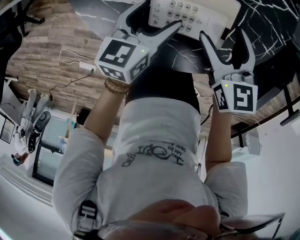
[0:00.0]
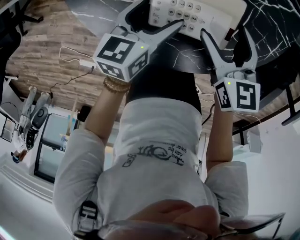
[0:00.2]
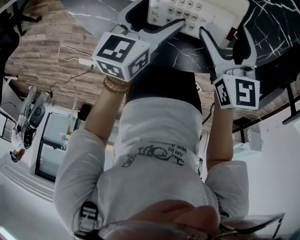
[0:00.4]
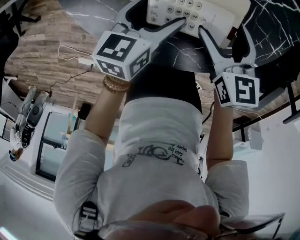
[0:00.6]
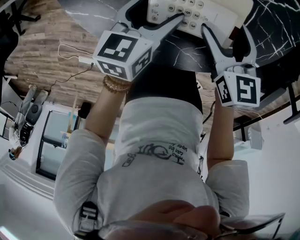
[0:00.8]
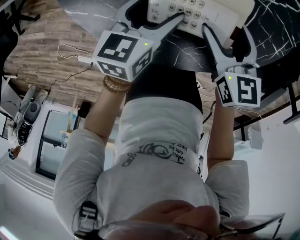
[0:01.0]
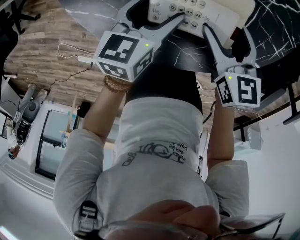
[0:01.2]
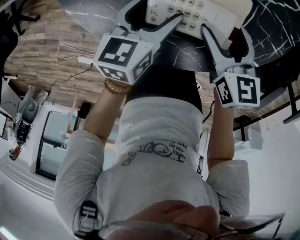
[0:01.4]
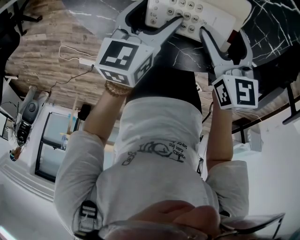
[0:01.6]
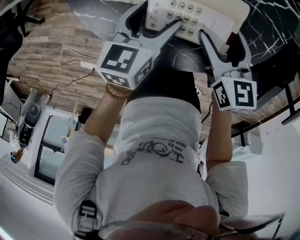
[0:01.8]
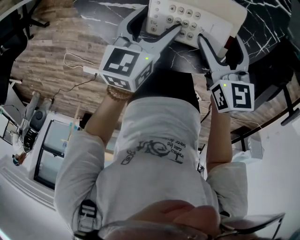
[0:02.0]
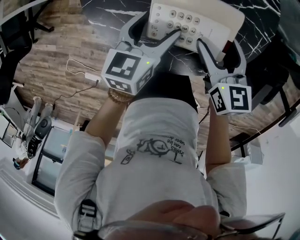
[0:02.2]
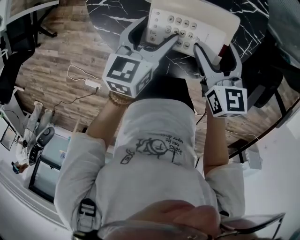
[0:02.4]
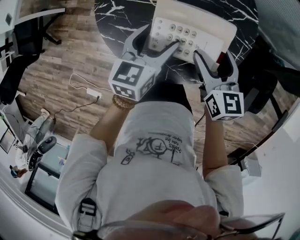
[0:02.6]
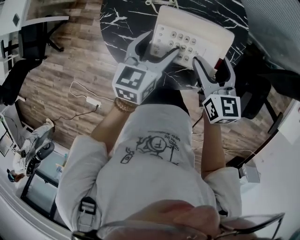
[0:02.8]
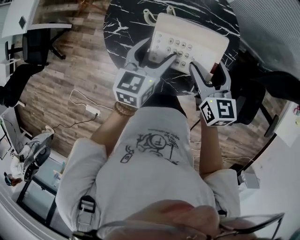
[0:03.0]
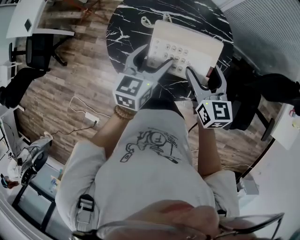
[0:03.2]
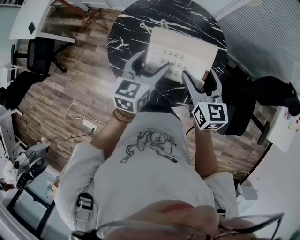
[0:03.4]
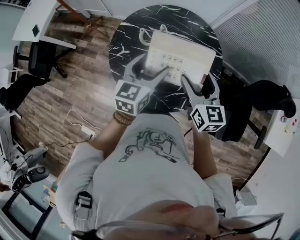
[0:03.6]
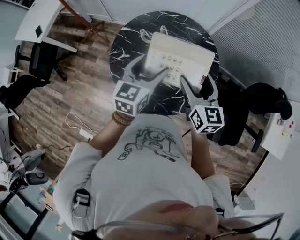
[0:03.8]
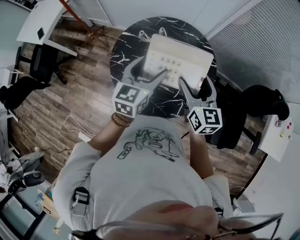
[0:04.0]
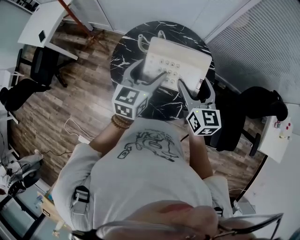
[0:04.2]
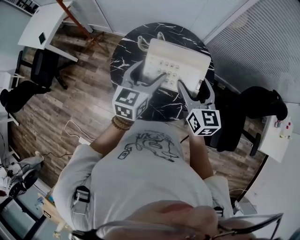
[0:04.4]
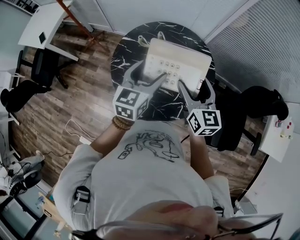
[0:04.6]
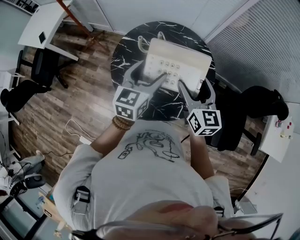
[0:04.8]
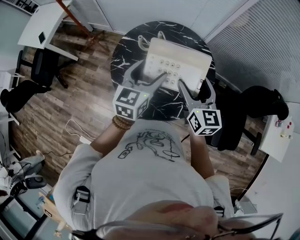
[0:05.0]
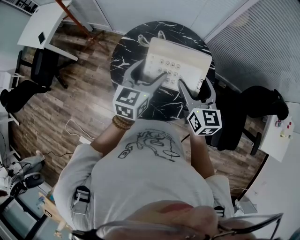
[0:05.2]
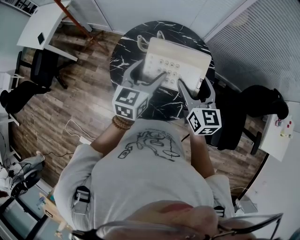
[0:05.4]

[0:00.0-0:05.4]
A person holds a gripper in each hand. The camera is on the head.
0:00.0 to 0:01.4: The right gripper moves downward, some 5 cm.
0:01.4 to 0:02.8: The two grippers go some 25 cm upward.
0:02.8 to 0:04.0: Both grippers move upward, approximately 20 cm.
0:04.0 to 0:05.4: There are only small adjustments of the grippers.

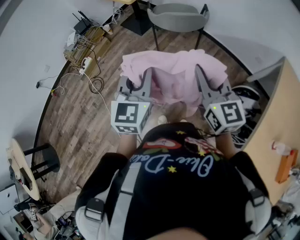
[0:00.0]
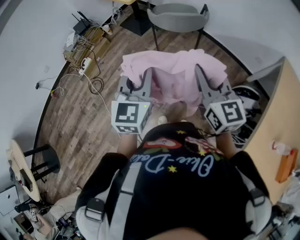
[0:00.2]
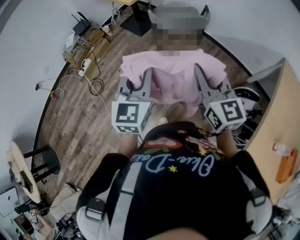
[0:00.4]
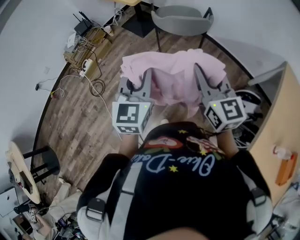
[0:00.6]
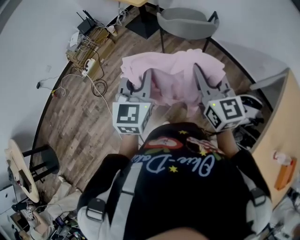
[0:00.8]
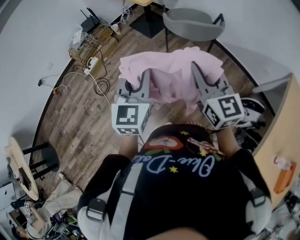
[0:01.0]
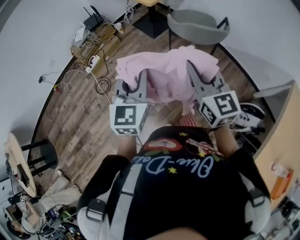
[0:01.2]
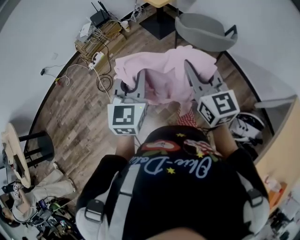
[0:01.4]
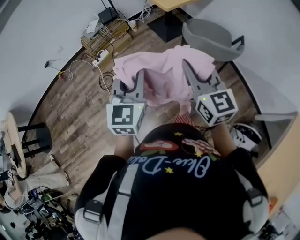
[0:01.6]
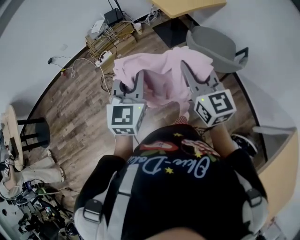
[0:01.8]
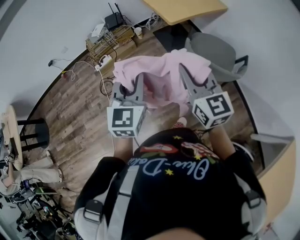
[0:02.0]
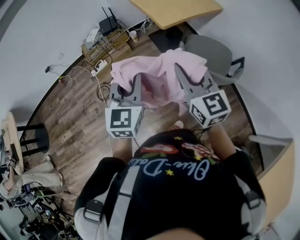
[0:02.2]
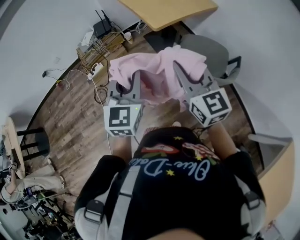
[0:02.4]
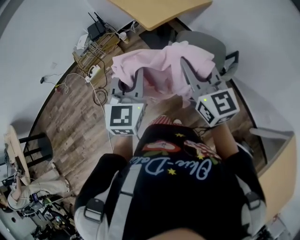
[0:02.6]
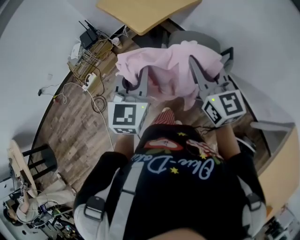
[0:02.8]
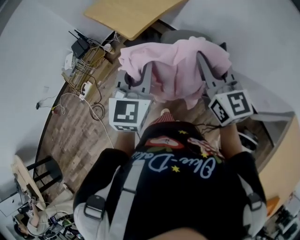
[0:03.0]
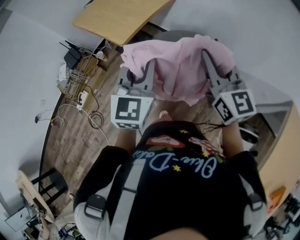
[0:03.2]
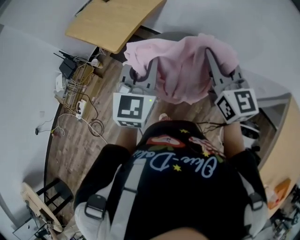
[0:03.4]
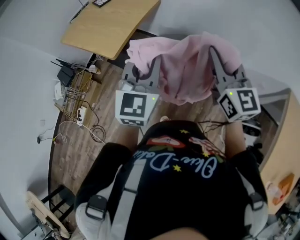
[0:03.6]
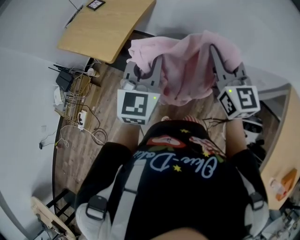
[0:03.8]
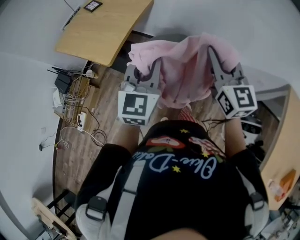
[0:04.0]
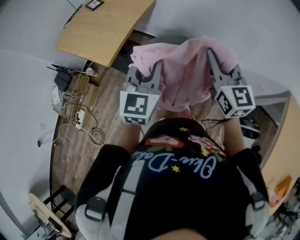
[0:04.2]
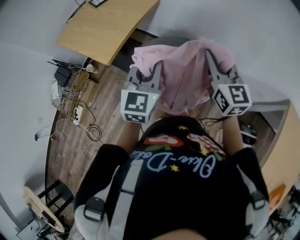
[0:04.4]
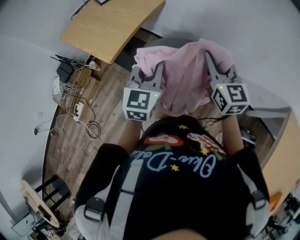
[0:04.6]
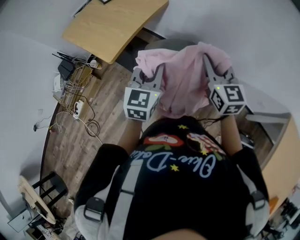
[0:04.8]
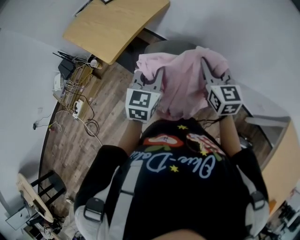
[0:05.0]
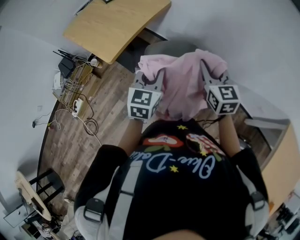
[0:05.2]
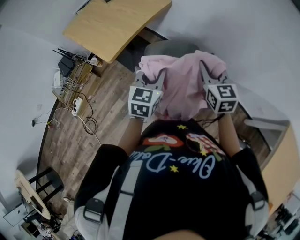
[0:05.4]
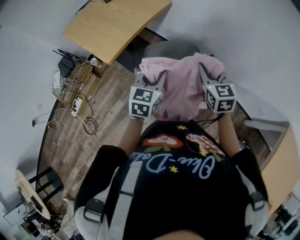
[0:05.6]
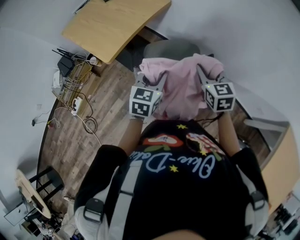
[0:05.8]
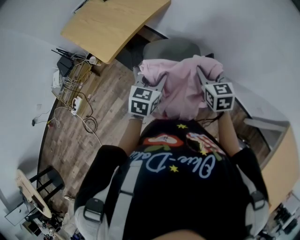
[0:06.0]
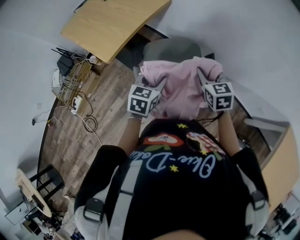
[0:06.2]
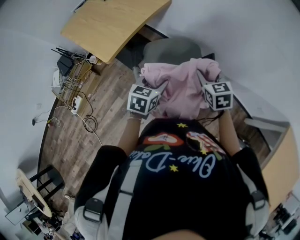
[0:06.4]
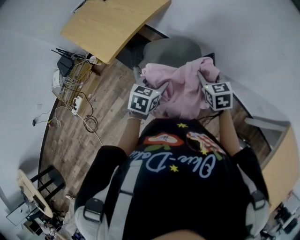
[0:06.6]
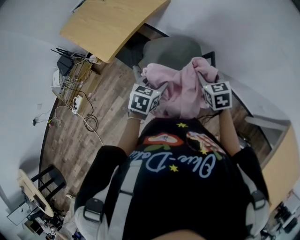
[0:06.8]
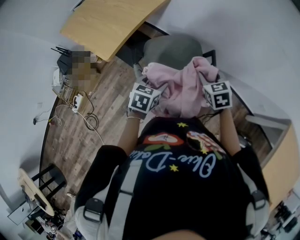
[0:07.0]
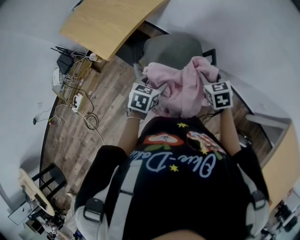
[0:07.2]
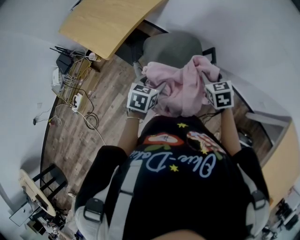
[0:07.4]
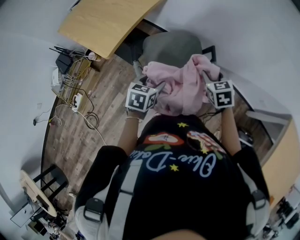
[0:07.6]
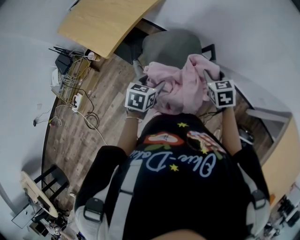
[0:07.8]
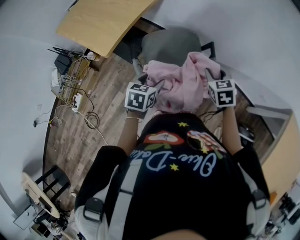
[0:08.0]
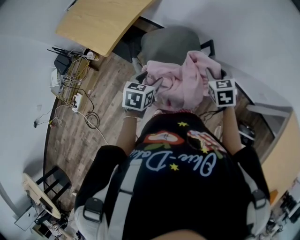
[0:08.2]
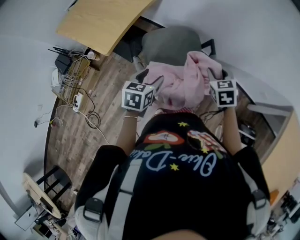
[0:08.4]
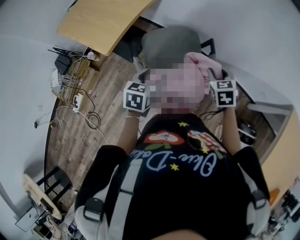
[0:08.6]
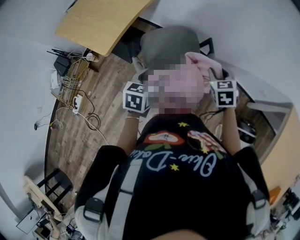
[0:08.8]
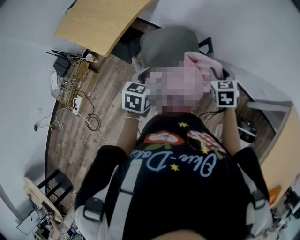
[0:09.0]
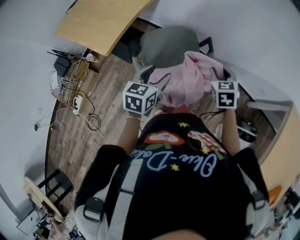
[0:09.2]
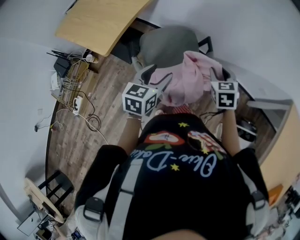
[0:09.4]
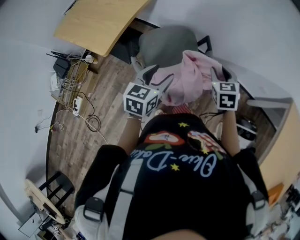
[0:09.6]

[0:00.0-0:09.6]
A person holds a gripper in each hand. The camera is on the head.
0:00.0 to 0:01.6: The two grippers go about 25 cm forward and to the left. The right gripper changes its angle by roughly 20 degrees.
0:01.6 to 0:03.2: The left gripper changes place by approximately 35 cm, and swivels approximately 20 degrees, while the right gripper shifts by roughly 30 cm, and turns by roughly 20 degrees.
0:03.2 to 0:04.8: The two grippers go roughly 20 cm forward, downward and to the right.
0:04.8 to 0:06.4: The two grippers go about 15 cm downward. The left gripper changes its angle by about 30 degrees, and opens; the right gripper changes its angle by some 30 degrees.
0:06.4 to 0:08.0: The left gripper ends up roughly 5 cm from where it was; the right gripper shifts by approximately 5 cm.
0:08.0 to 0:09.6: The left gripper shifts approximately 10 cm upward, and turns by approximately 20 degrees. Meanwhile the right gripper ends up approximately 5 cm from where it was.

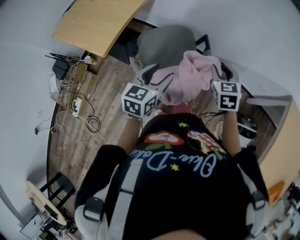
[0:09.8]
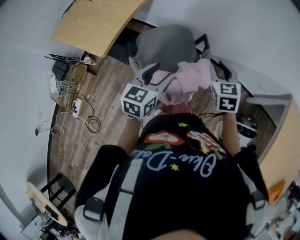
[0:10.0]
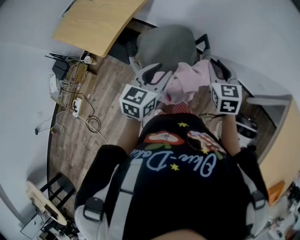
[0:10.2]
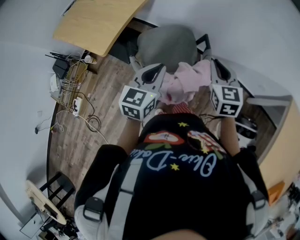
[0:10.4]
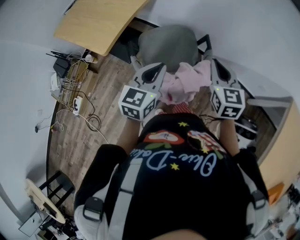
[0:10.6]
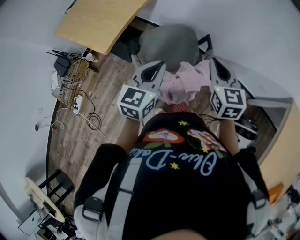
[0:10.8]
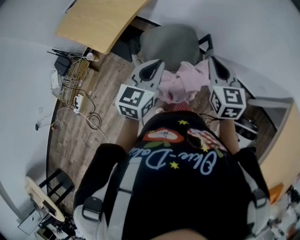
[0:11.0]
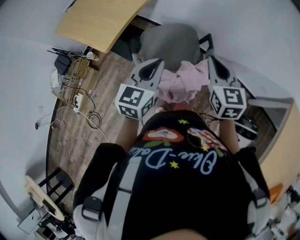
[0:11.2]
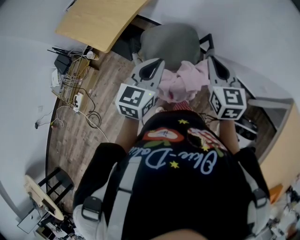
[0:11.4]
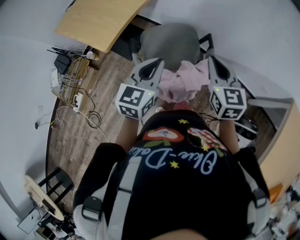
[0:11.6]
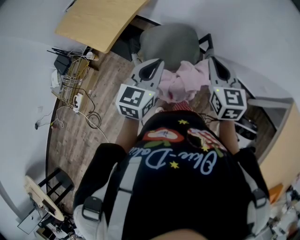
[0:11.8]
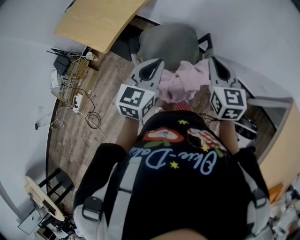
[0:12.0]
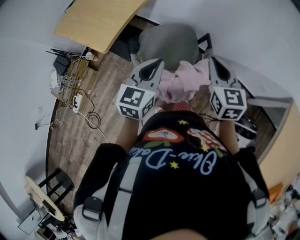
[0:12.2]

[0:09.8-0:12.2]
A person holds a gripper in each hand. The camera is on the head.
0:09.8 to 0:11.0: The right gripper is displaced upward and to the left by some 10 cm, changes its angle by approximately 20 degrees, and closes up, while the left gripper moves upward, approximately 5 cm, and closes.
0:11.0 to 0:12.2: Neither gripper changes place.

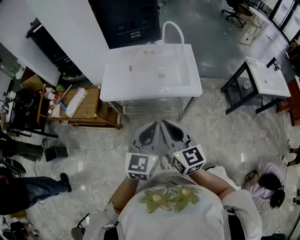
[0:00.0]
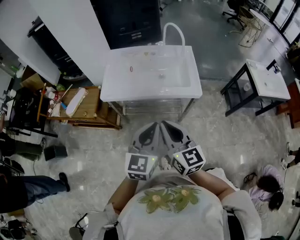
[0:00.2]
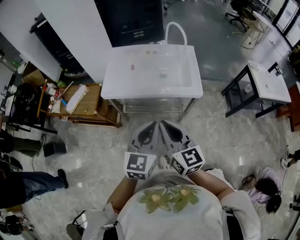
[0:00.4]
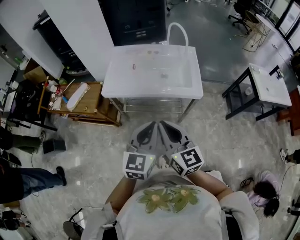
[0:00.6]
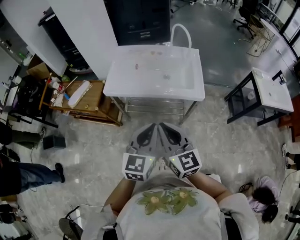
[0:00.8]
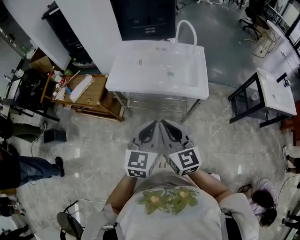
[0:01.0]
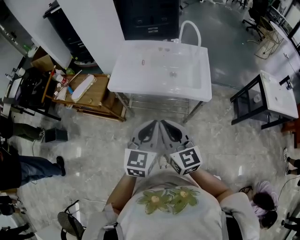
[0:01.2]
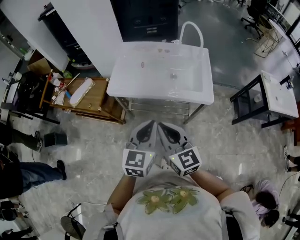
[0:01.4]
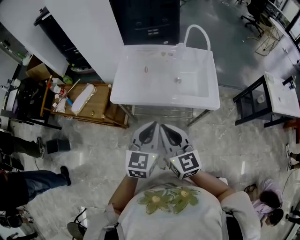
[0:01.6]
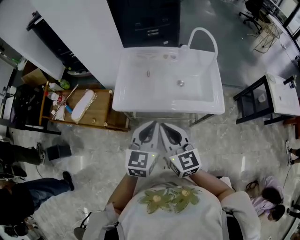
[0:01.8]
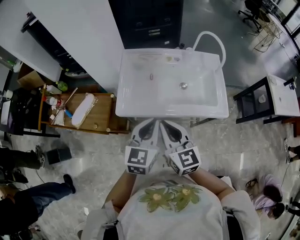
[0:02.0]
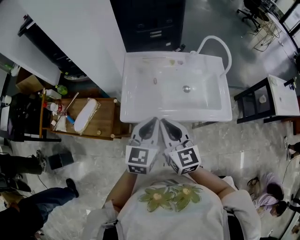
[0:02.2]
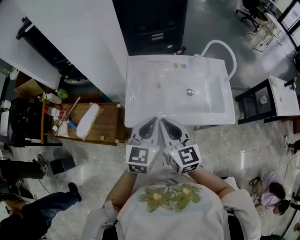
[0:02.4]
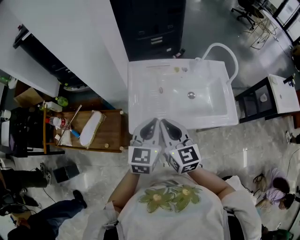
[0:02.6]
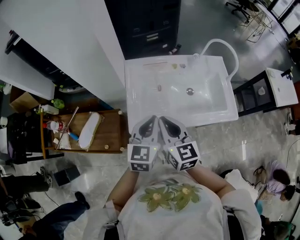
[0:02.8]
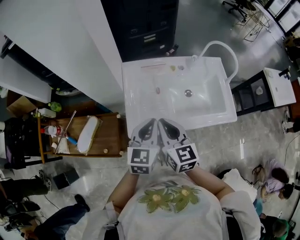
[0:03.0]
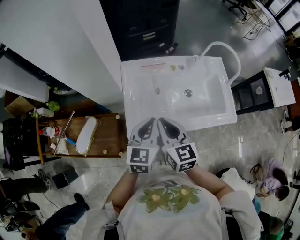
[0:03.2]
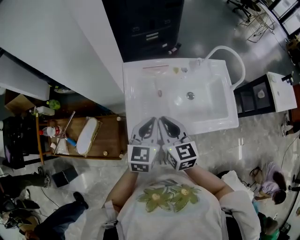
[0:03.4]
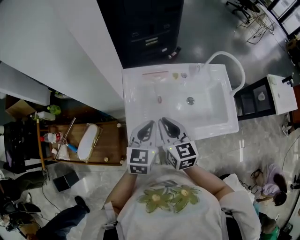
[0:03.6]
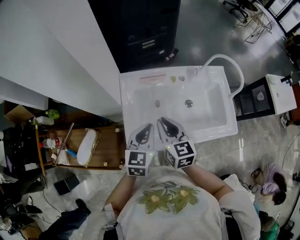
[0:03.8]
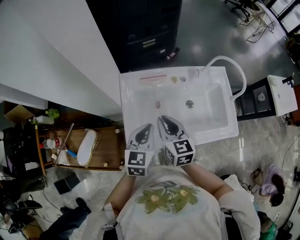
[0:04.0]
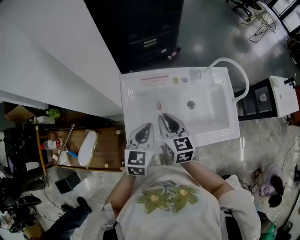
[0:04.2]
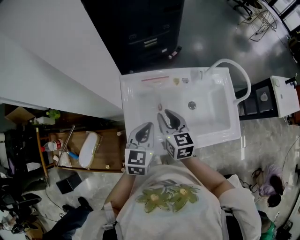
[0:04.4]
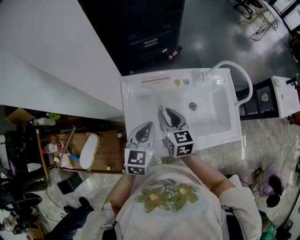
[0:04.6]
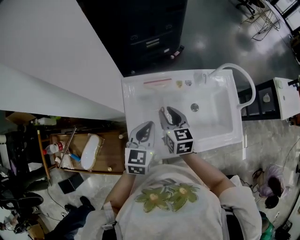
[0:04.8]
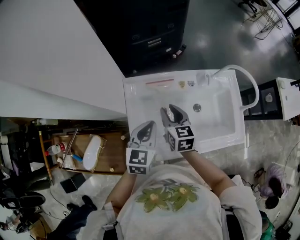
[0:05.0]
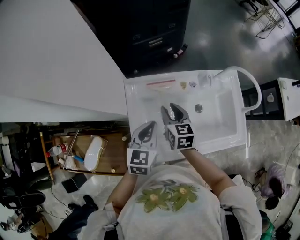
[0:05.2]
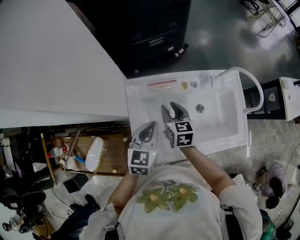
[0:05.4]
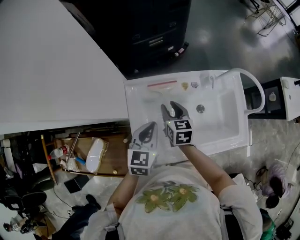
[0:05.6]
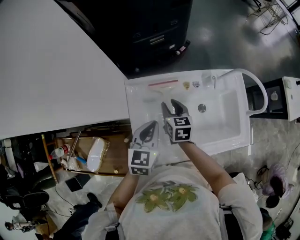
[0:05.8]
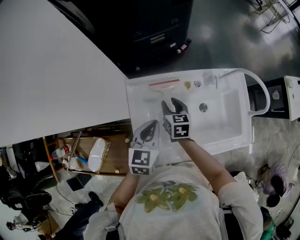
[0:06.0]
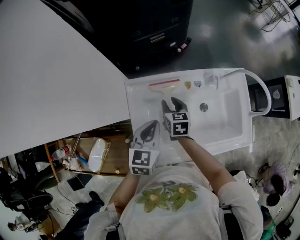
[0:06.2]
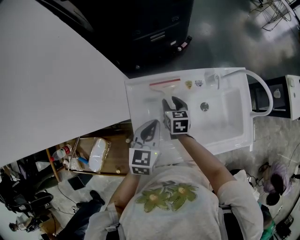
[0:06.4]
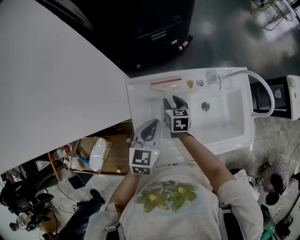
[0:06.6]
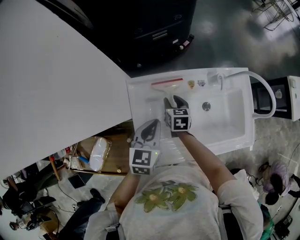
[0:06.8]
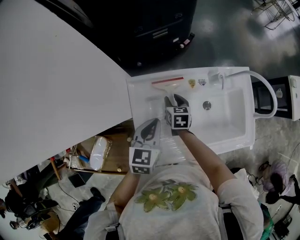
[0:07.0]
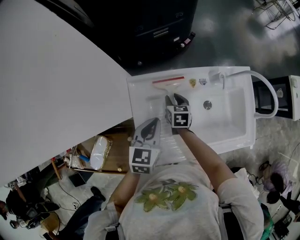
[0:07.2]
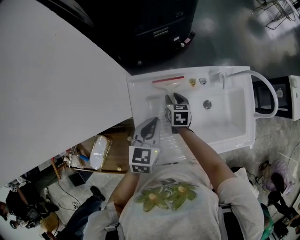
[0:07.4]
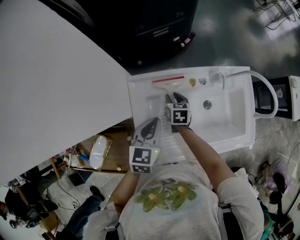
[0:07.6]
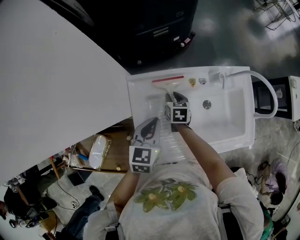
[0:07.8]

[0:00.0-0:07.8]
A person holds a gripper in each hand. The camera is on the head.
0:00.0 to 0:01.6: The two grippers go some 10 cm forward and to the left.
0:01.6 to 0:03.2: The two grippers go about 30 cm forward and to the left. The right gripper turns by some 20 degrees.
0:03.2 to 0:04.6: The right gripper heads forward and downward, covering about 15 cm. Meanwhile the left gripper moves forward, approximately 10 cm.
0:04.6 to 0:06.2: The left gripper moves forward, about 5 cm; the right gripper travels downward and forward by about 15 cm.
0:06.2 to 0:07.8: The right gripper travels downward by some 5 cm.
